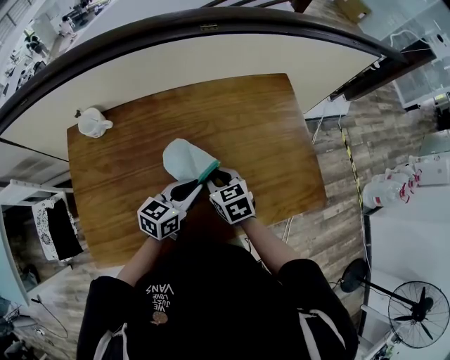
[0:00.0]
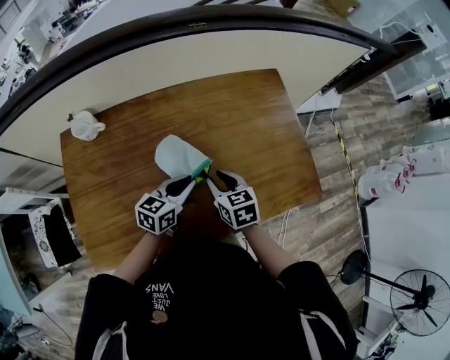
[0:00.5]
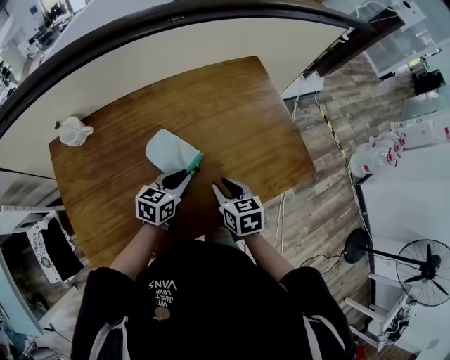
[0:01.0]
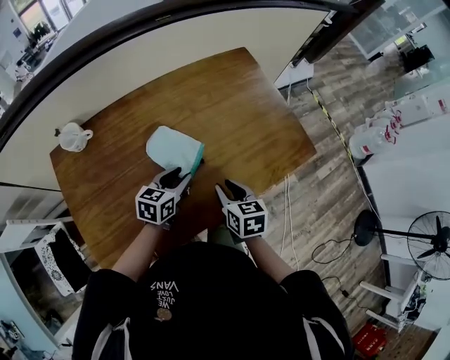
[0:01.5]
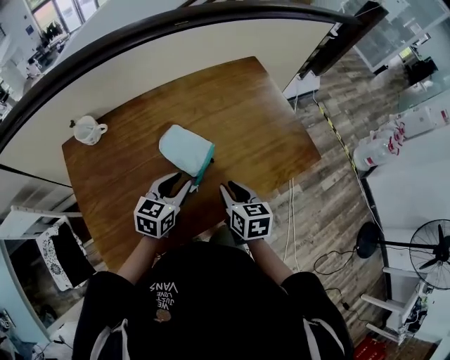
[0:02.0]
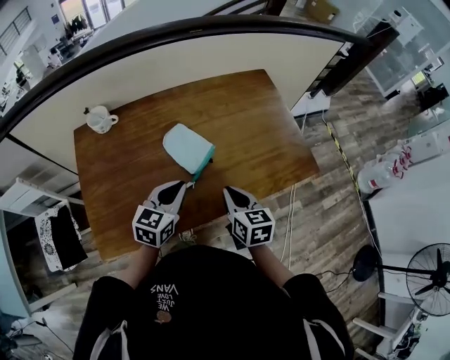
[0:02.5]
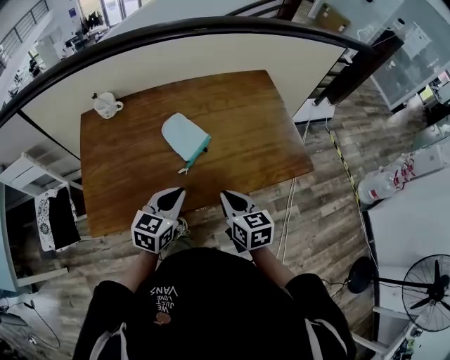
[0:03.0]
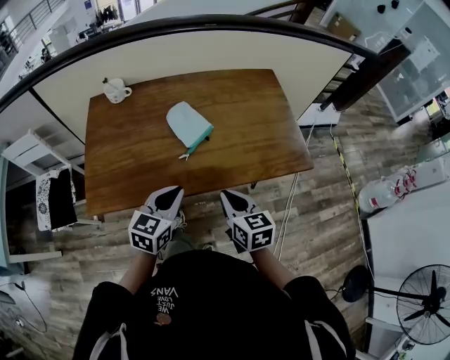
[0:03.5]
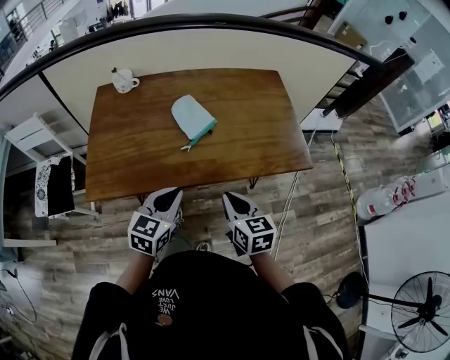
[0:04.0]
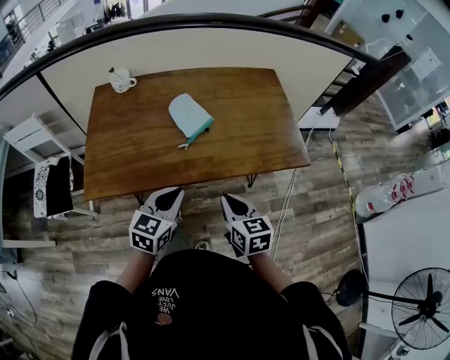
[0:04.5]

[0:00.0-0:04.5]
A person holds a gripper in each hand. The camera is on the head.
0:00.0 to 0:02.0: The right gripper goes about 15 cm backward and to the right, and changes its angle by about 30 degrees, while the left gripper heads backward, covering about 5 cm, and opens up.
0:02.0 to 0:04.5: Both grippers travel together backward, roughly 20 cm. The right gripper changes its angle by about 20 degrees, while the left gripper closes.

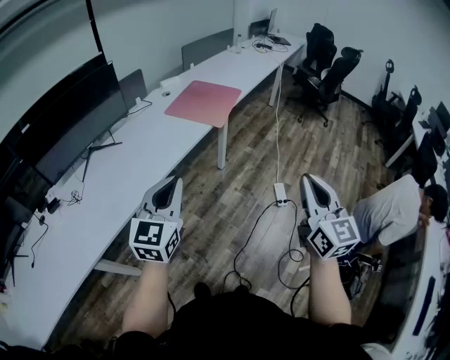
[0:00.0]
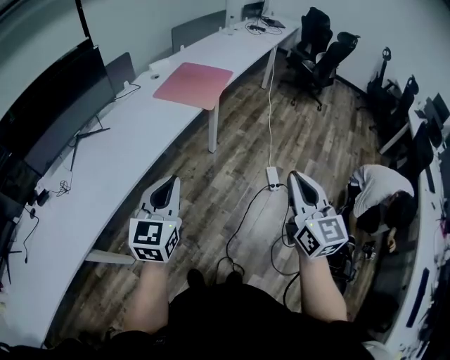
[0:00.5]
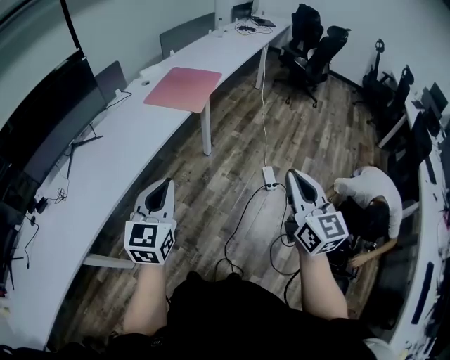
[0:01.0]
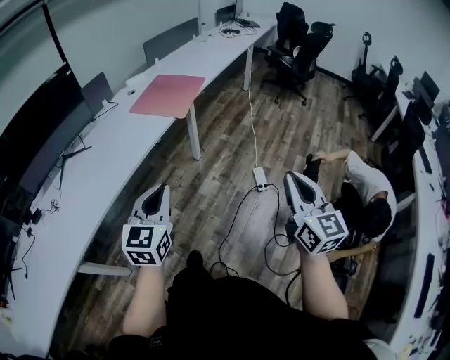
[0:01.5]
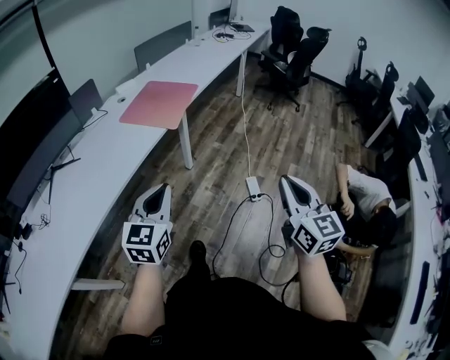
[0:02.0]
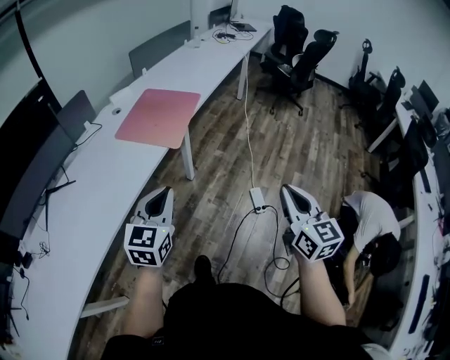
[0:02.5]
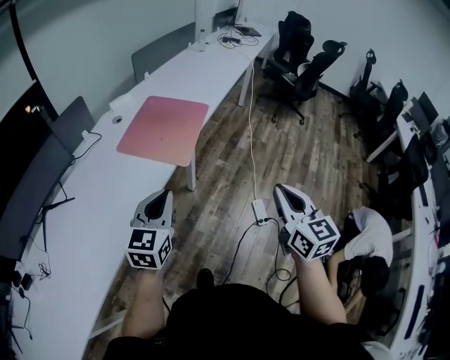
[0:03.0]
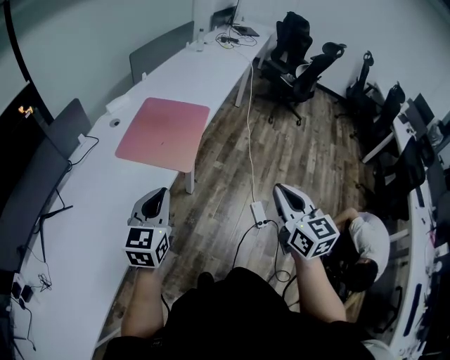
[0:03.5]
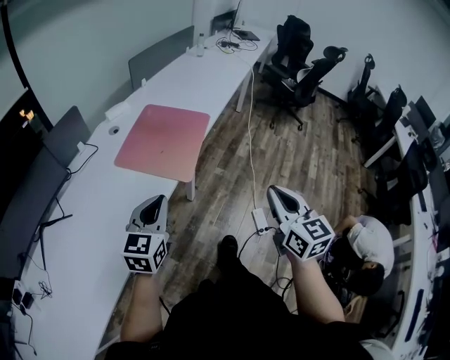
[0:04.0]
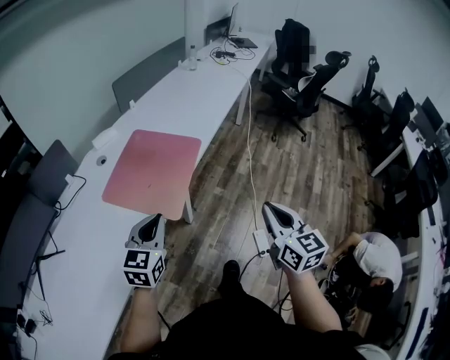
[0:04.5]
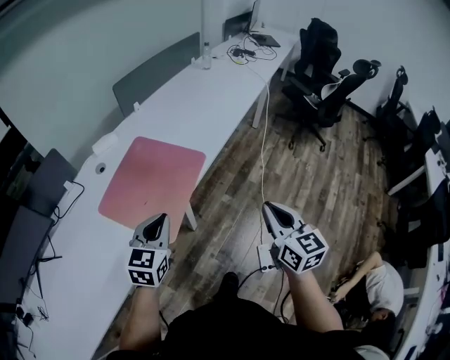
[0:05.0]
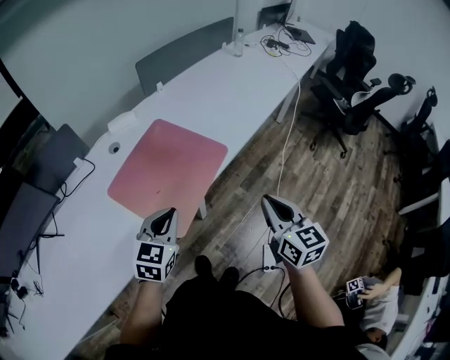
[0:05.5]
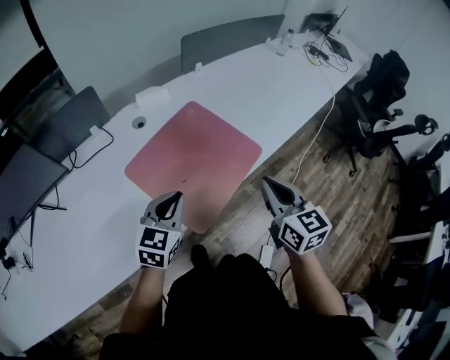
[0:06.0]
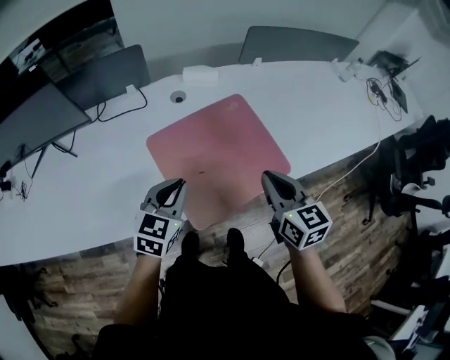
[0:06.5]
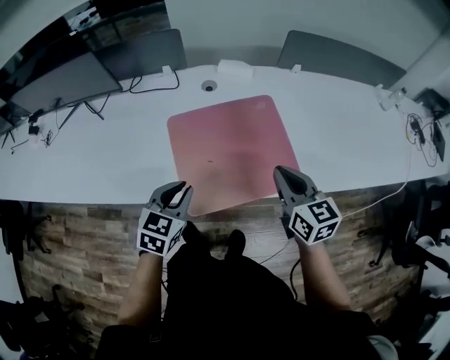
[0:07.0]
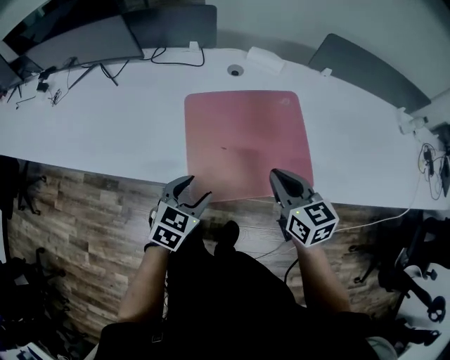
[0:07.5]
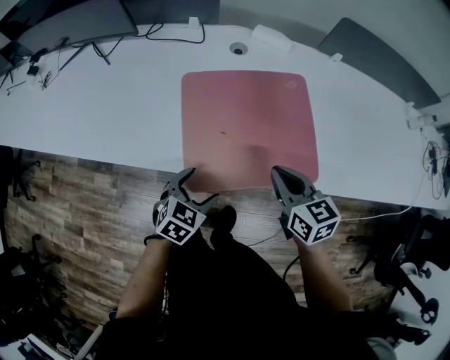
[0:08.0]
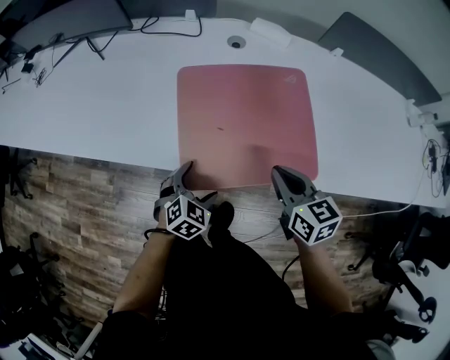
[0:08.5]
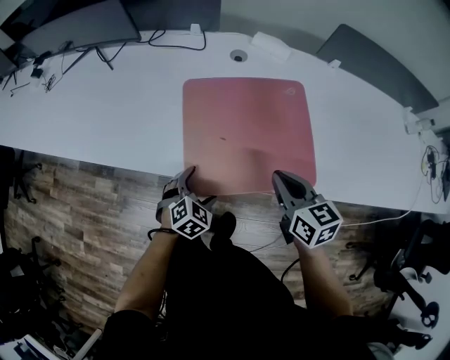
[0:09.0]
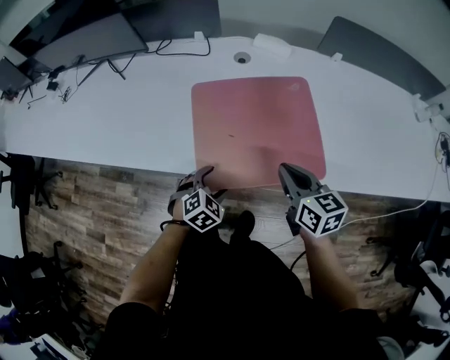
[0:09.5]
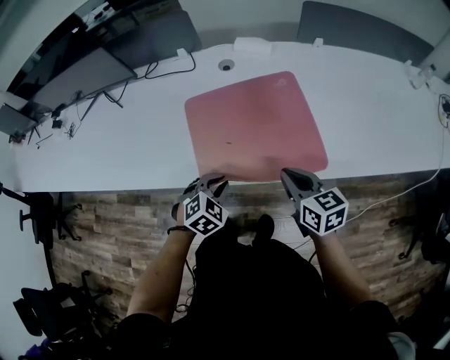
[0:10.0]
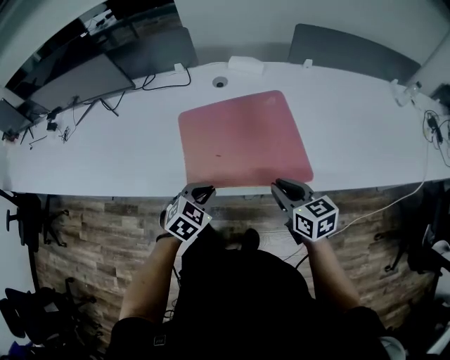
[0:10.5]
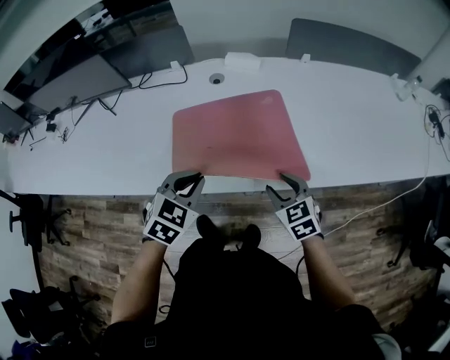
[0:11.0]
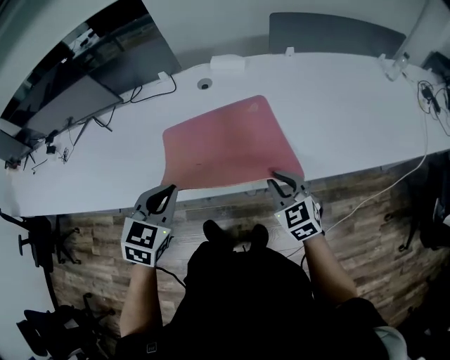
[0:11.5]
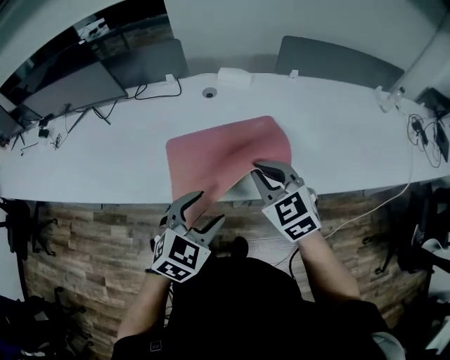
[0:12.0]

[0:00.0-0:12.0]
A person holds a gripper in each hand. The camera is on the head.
0:00.0 to 0:02.0: The right gripper travels to the right, downward and forward by some 15 cm. The left gripper is displaced to the right, forward and downward by about 15 cm.
0:02.0 to 0:04.0: The two grippers go about 35 cm forward and to the left.
0:04.0 to 0:06.0: Both grippers move forward, some 35 cm. The right gripper rotates approximately 30 degrees.
0:06.0 to 0:08.0: The grippers both shift downward by roughly 15 cm. The right gripper changes its angle by some 50 degrees. Meanwhile the left gripper rotates about 30 degrees, and opens.
0:08.0 to 0:10.0: The left gripper changes its angle by some 30 degrees, and closes up.
0:10.0 to 0:12.0: The grippers both shift upward by approximately 15 cm. The left gripper rotates some 20 degrees, and opens its fingers, while the right gripper swivels some 40 degrees, and opens and closes again.

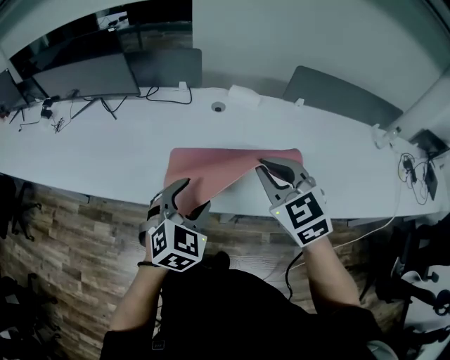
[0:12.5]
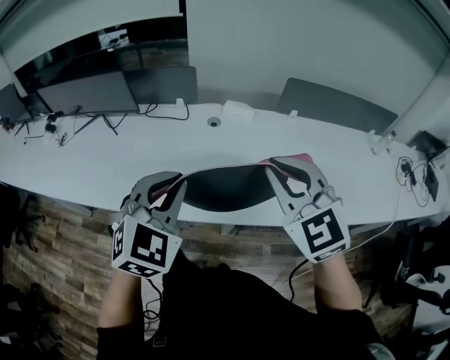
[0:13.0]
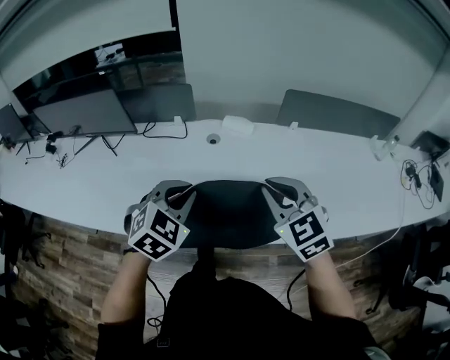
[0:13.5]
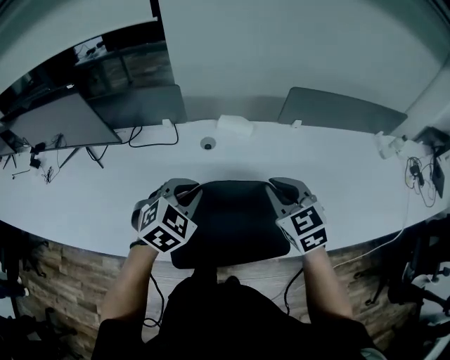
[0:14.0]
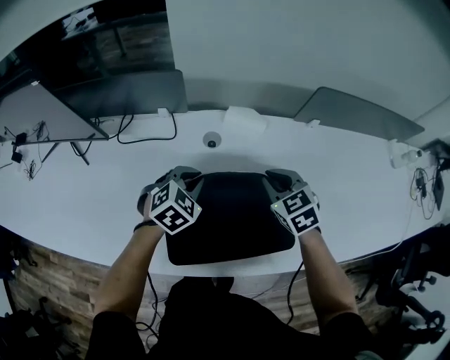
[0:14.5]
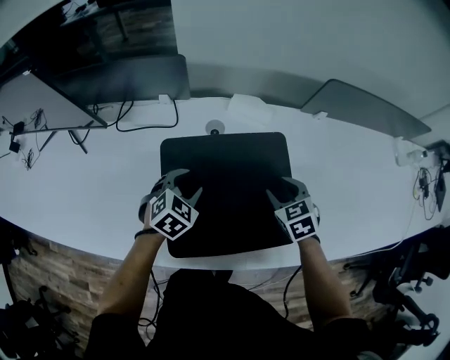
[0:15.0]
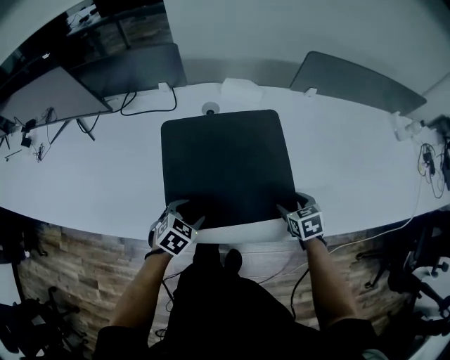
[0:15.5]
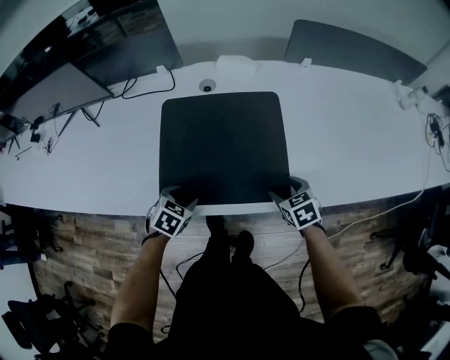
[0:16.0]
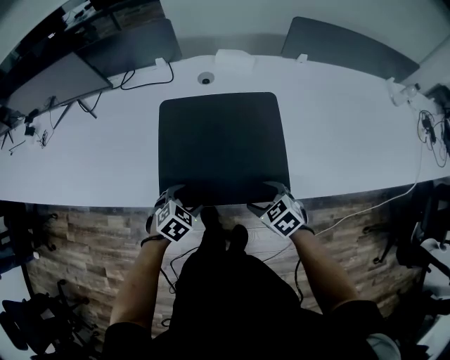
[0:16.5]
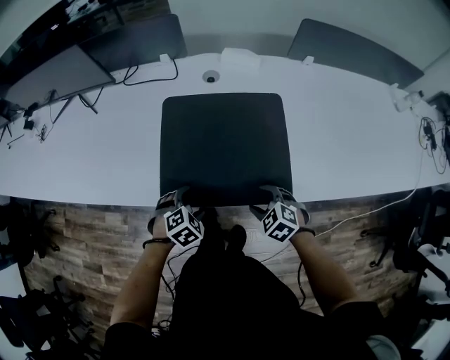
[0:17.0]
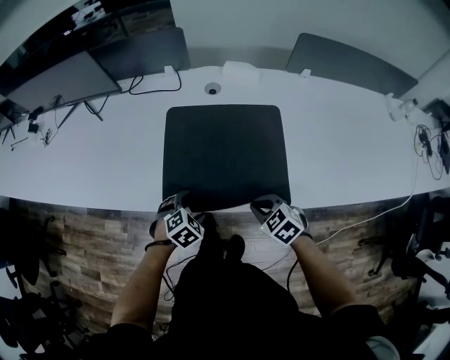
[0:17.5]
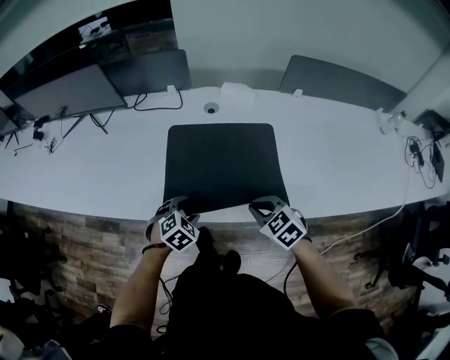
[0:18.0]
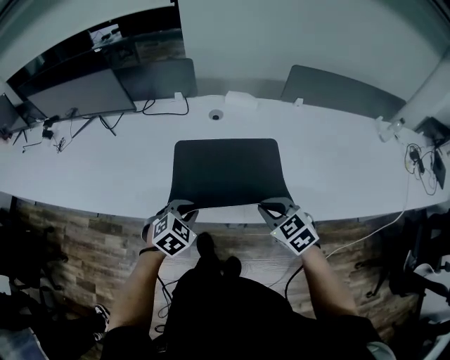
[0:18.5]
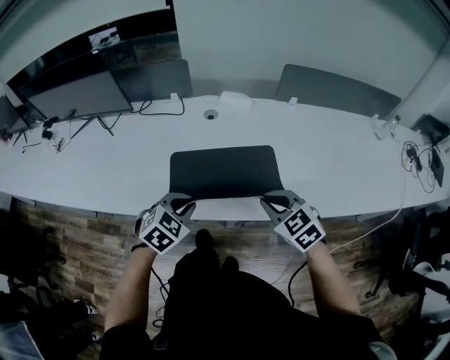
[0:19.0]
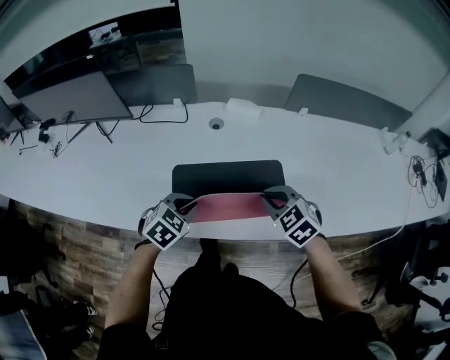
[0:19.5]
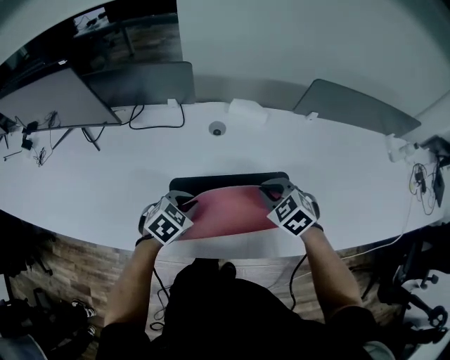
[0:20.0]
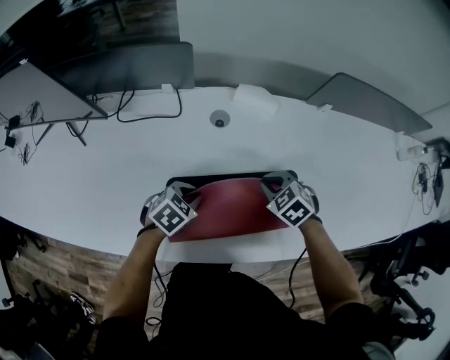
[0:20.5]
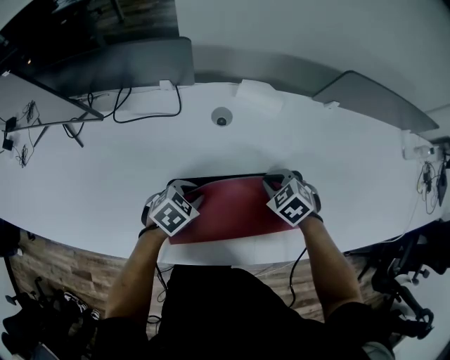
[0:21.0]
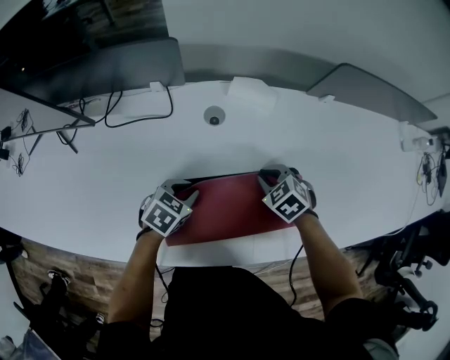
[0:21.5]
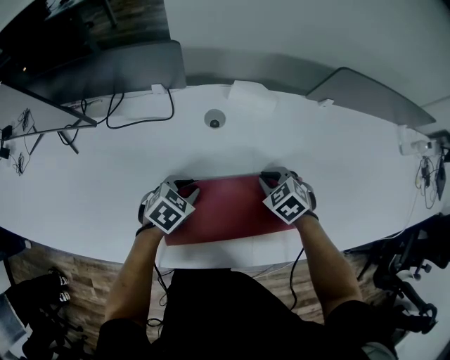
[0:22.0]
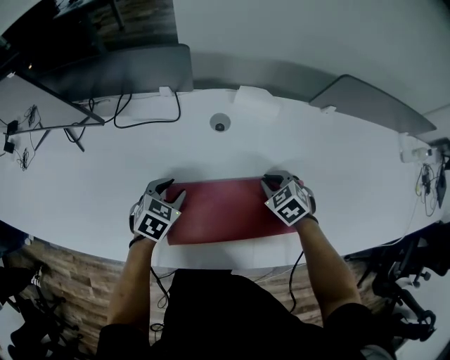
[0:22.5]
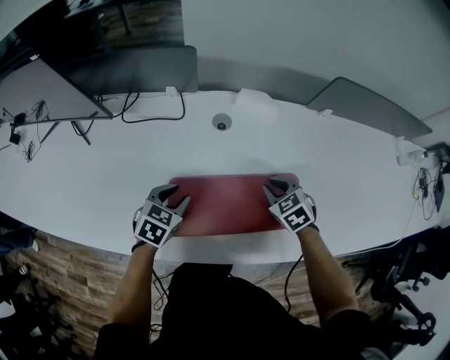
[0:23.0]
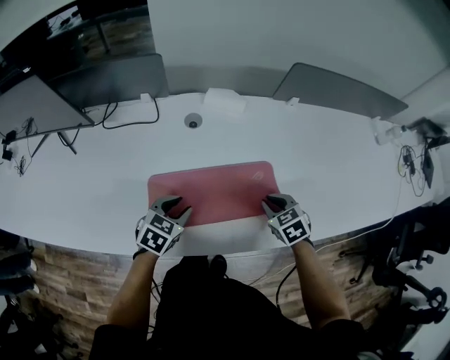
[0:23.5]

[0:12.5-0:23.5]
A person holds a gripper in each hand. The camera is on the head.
0:12.5 to 0:14.5: The right gripper shifts approximately 35 cm forward and downward, and changes its angle by roughly 20 degrees; the left gripper moves forward, roughly 35 cm, changes its angle by some 20 degrees, and closes its fingers.
0:14.5 to 0:16.0: The right gripper is displaced backward, downward and to the right by about 30 cm, and opens its fingers. Meanwhile the left gripper shifts about 30 cm backward and downward, rotates approximately 20 degrees, and opens its fingers.
0:16.0 to 0:18.0: The right gripper moves to the left and upward, about 15 cm, swivels approximately 30 degrees, and closes.
0:18.0 to 0:20.0: Both grippers move forward, some 15 cm. The left gripper closes up.
0:20.0 to 0:21.5: The left gripper shifts approximately 10 cm forward and downward; the right gripper travels downward and forward by about 15 cm.
0:21.5 to 0:23.5: The right gripper moves backward and to the right, approximately 15 cm. The left gripper is displaced backward and upward by roughly 10 cm.
